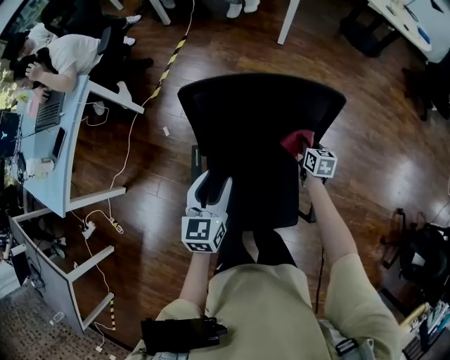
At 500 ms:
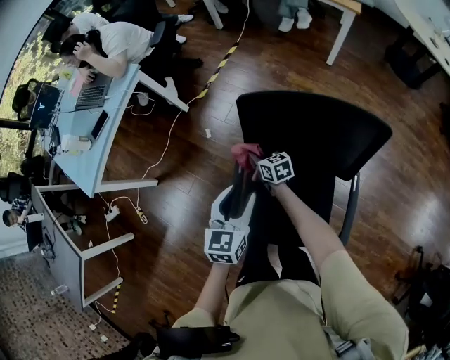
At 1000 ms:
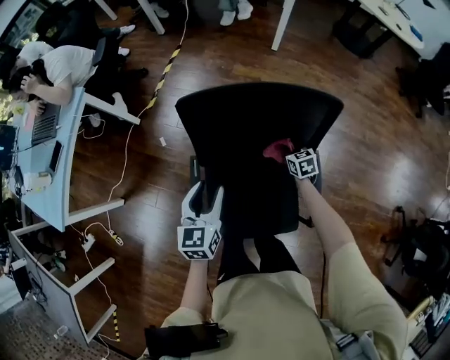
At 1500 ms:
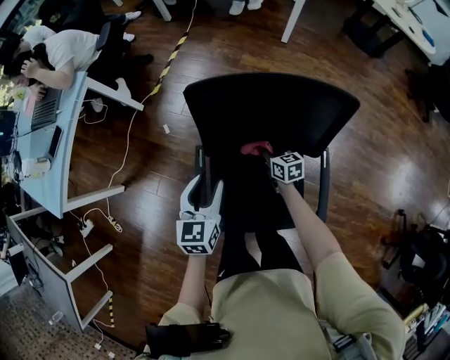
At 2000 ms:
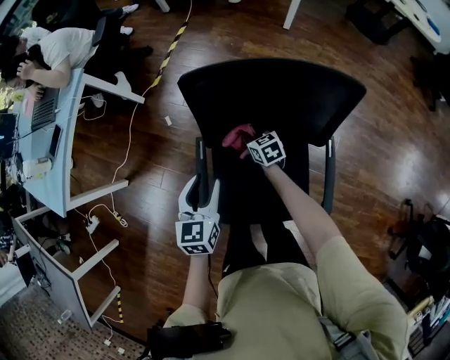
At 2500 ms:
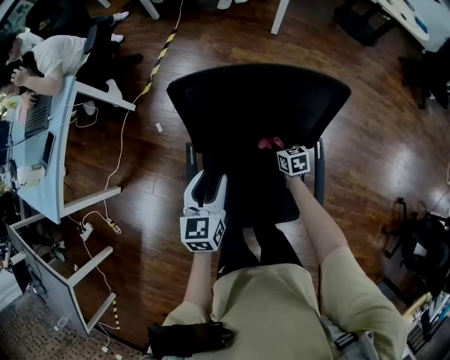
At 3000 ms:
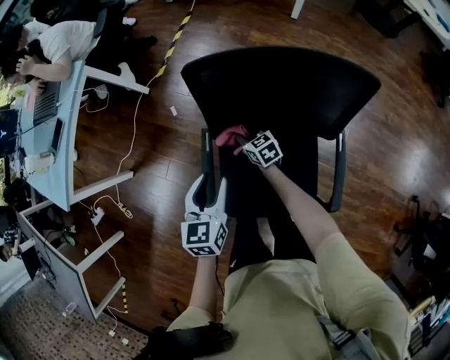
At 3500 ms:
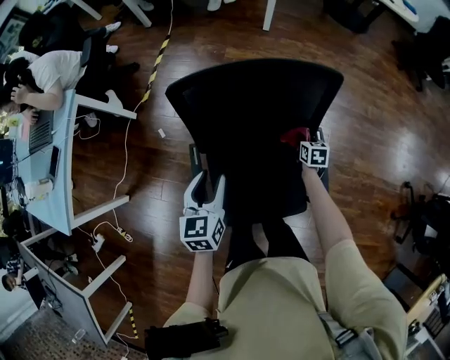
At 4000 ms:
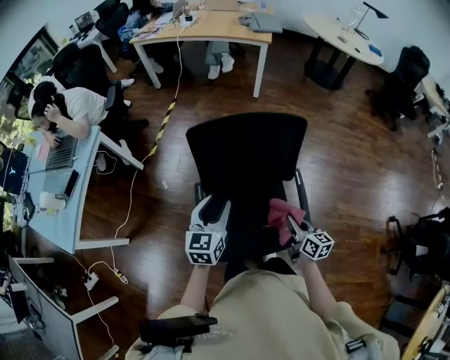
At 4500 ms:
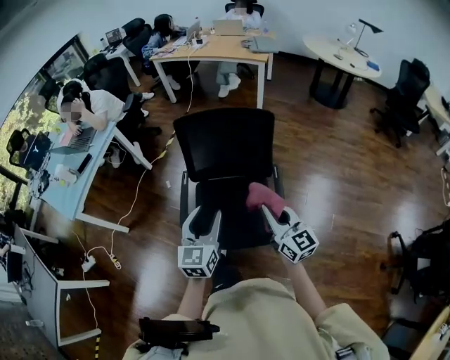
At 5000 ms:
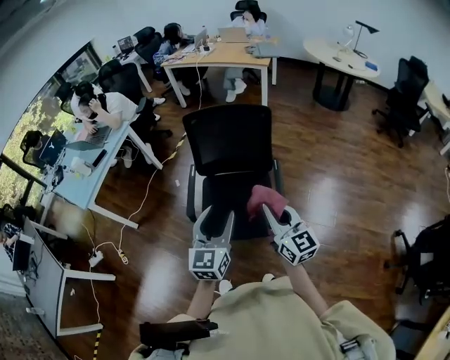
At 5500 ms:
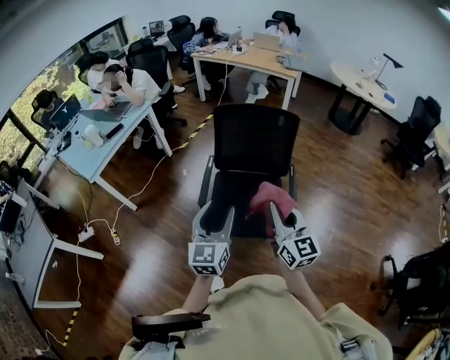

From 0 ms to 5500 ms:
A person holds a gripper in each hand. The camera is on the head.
From 0 ms to 2000 ms: The right gripper changes place by approximately 25 cm, and swivels some 30 degrees. Meanwhile the left gripper moves approximately 10 cm.
From 2000 ms to 3500 ms: The right gripper changes place by roughly 25 cm, and changes its angle by about 40 degrees.
From 3500 ms to 5500 ms: The left gripper heads backward and upward, covering roughly 40 cm, and swivels approximately 30 degrees, while the right gripper is displaced upward and backward by roughly 60 cm, and angles its fingers upward, by some 60 degrees.

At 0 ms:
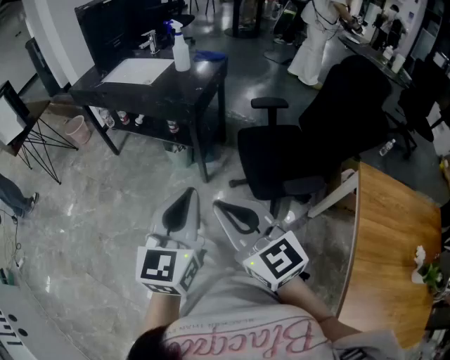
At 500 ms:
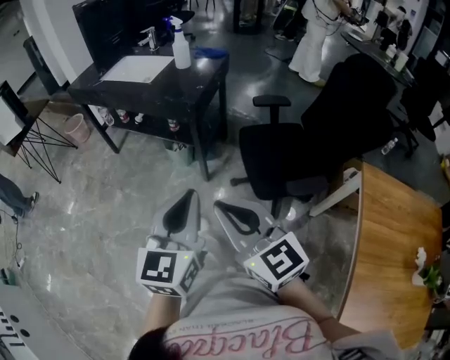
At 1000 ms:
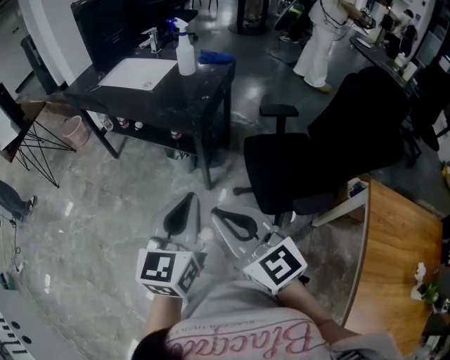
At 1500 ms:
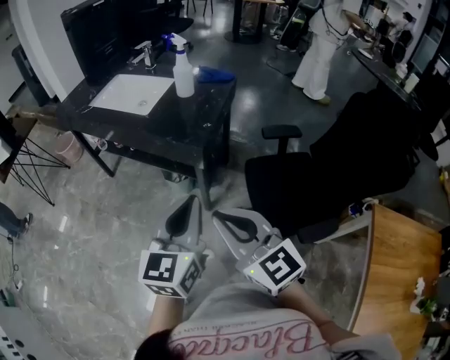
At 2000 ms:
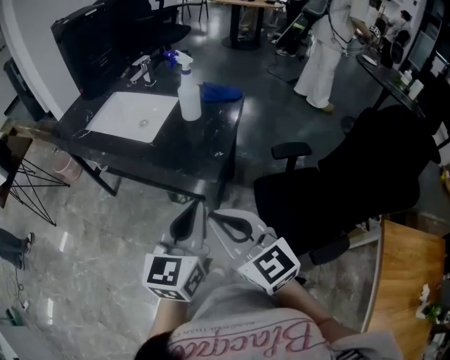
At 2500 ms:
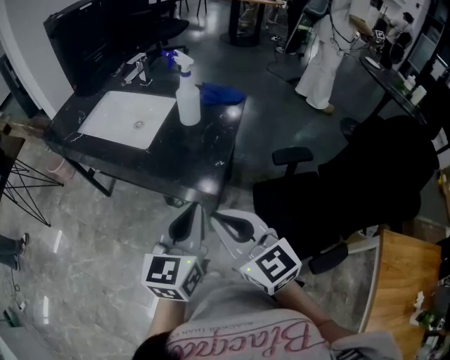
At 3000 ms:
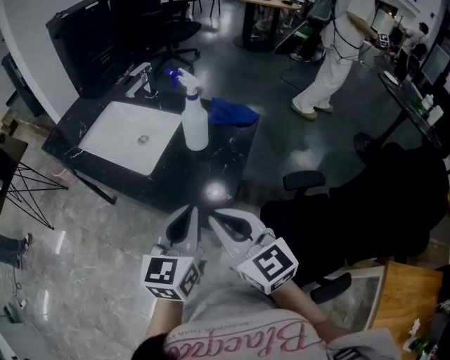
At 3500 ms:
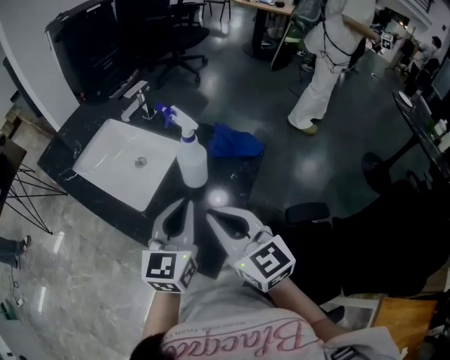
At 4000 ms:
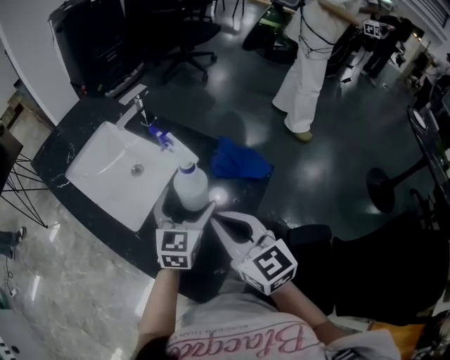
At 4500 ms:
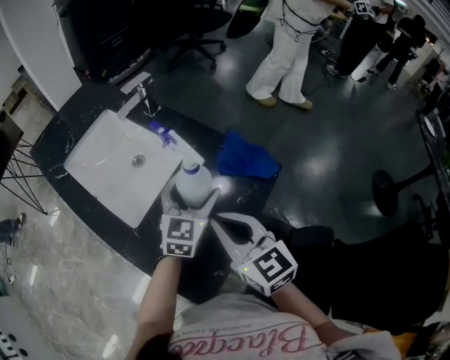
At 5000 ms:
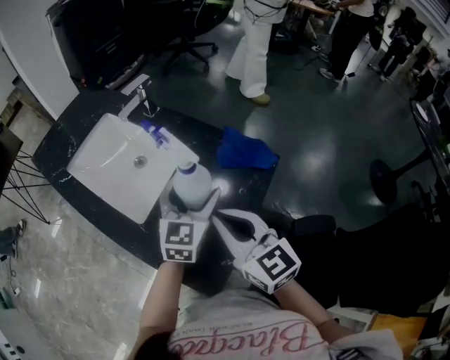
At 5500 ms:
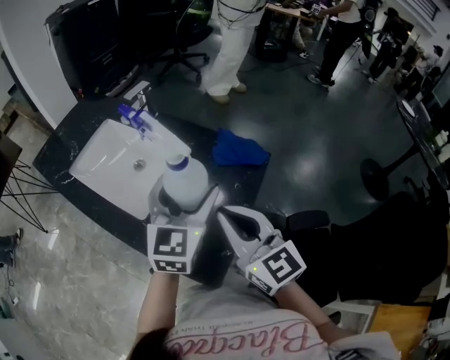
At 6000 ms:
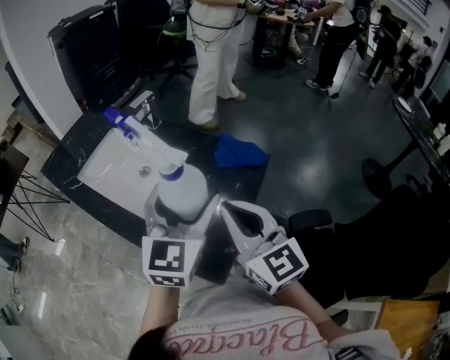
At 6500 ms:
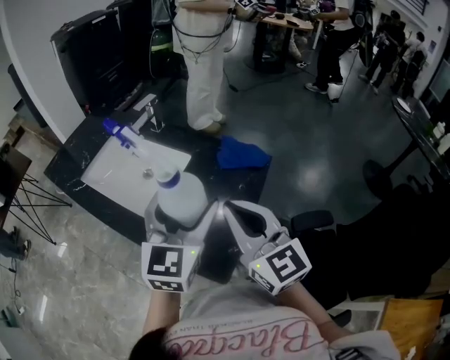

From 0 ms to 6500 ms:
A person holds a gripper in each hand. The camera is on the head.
From 0 ms to 2000 ms: The grippers both shift forward by roughly 30 cm.
From 2000 ms to 4500 ms: Both grippers travel together forward, roughly 35 cm. The left gripper opens.
From 4500 ms to 6500 ms: The left gripper travels upward and backward by roughly 20 cm. Meanwhile the right gripper heads upward and backward, covering roughly 10 cm, and turns by some 20 degrees.

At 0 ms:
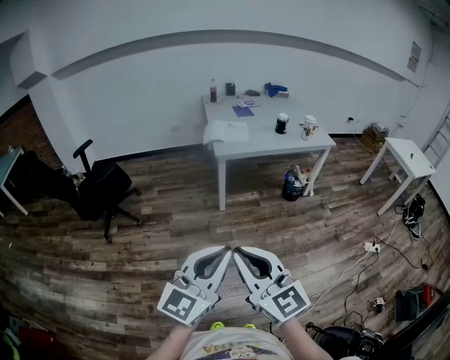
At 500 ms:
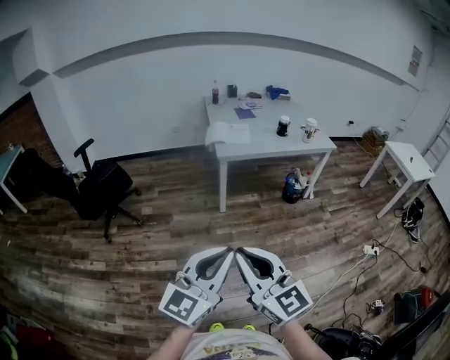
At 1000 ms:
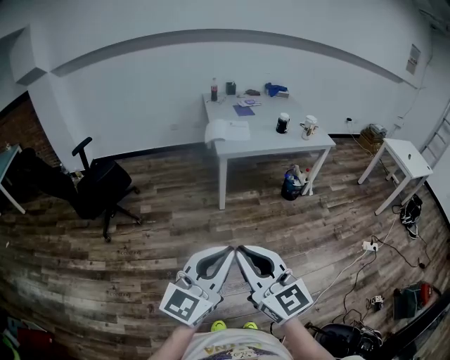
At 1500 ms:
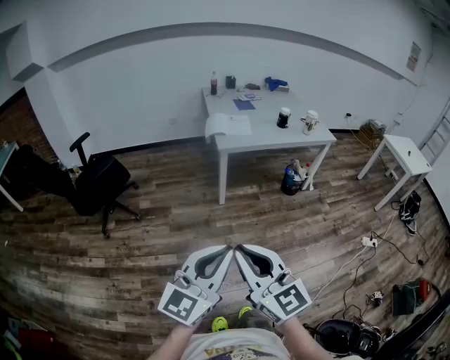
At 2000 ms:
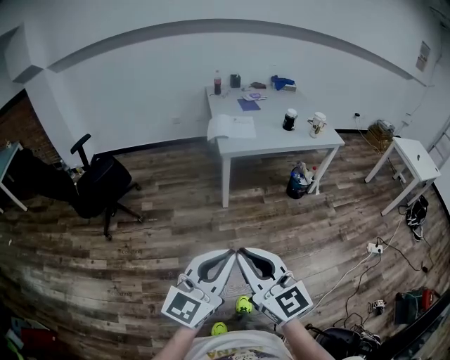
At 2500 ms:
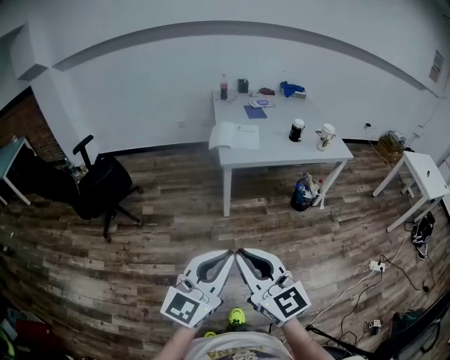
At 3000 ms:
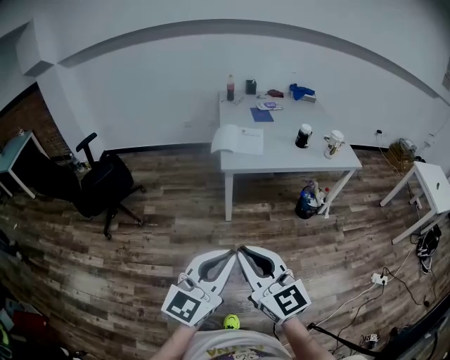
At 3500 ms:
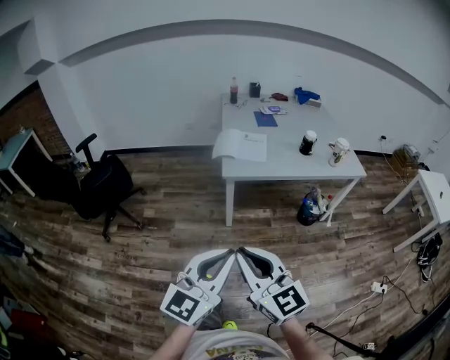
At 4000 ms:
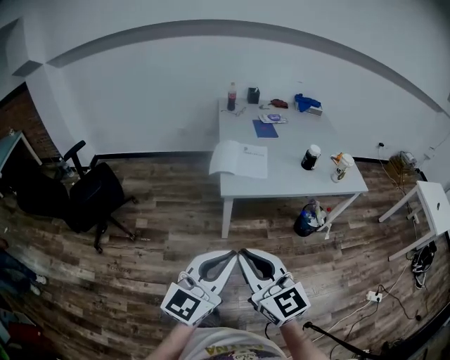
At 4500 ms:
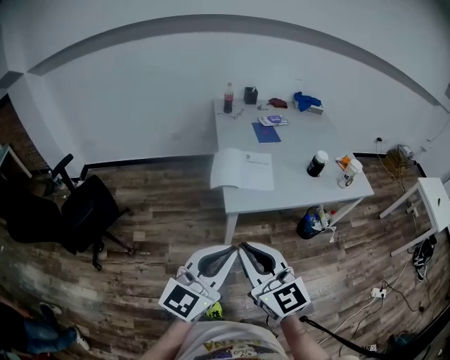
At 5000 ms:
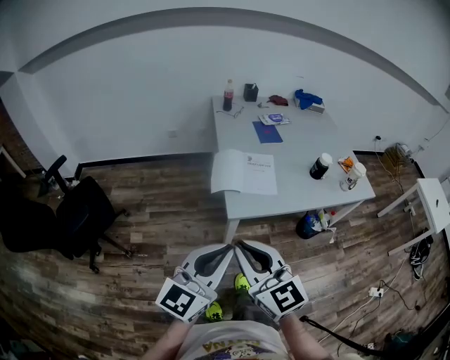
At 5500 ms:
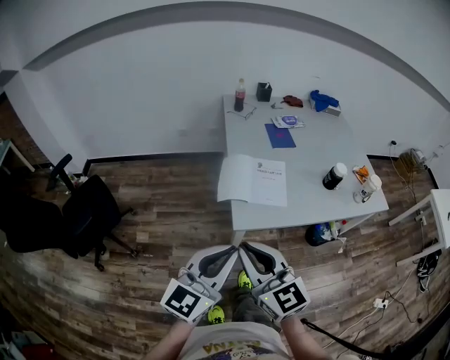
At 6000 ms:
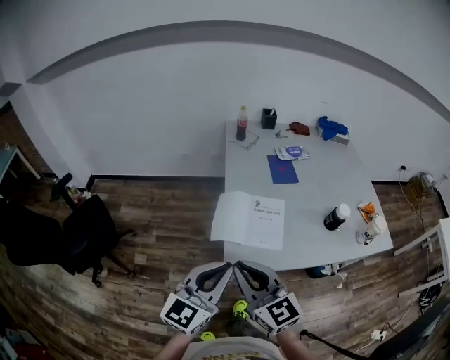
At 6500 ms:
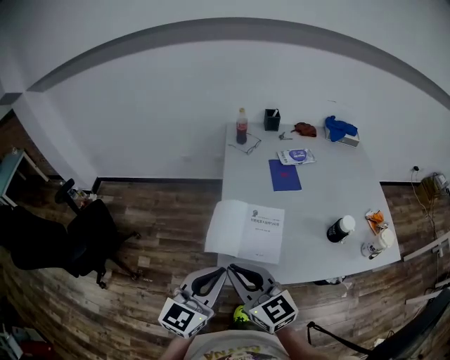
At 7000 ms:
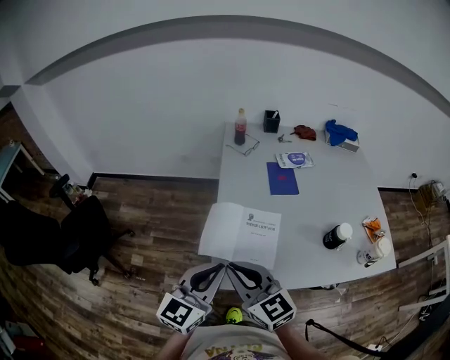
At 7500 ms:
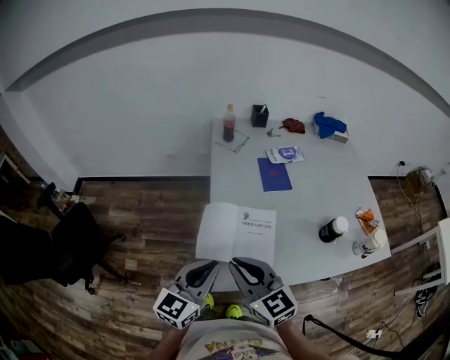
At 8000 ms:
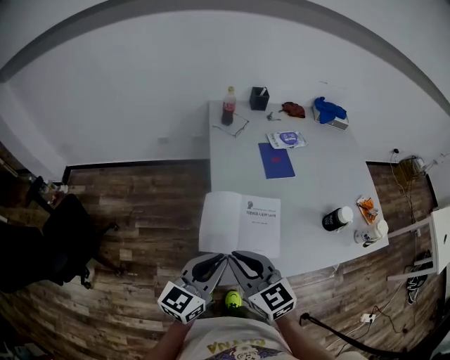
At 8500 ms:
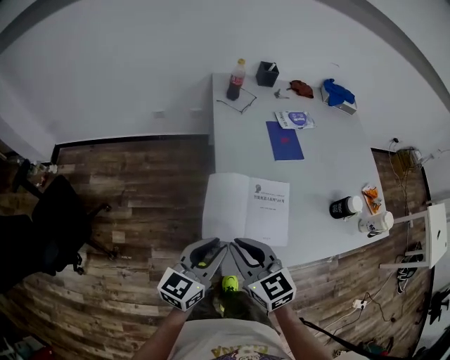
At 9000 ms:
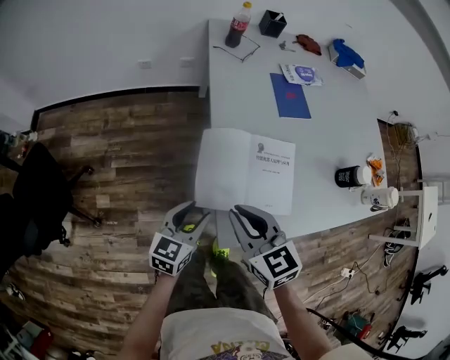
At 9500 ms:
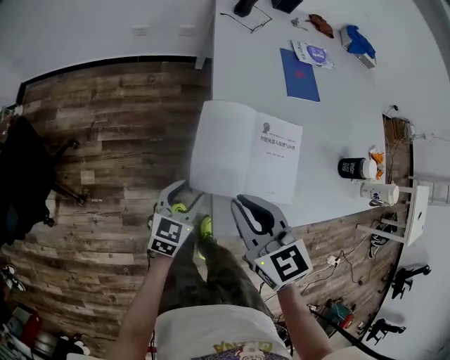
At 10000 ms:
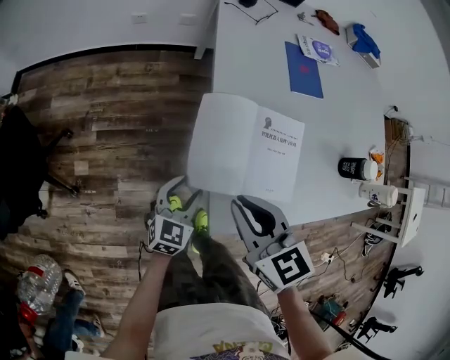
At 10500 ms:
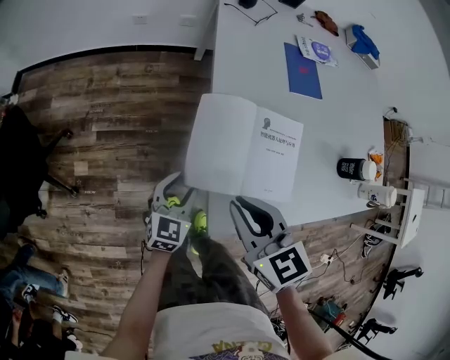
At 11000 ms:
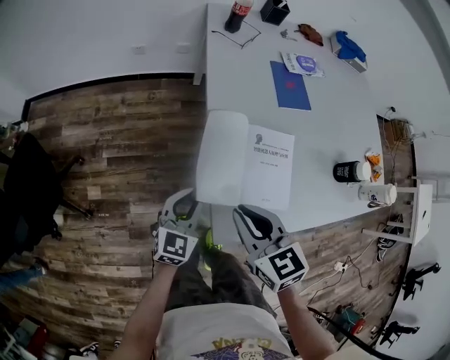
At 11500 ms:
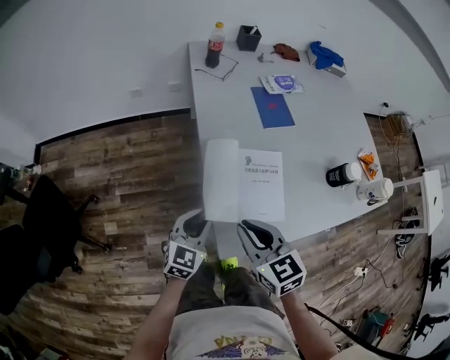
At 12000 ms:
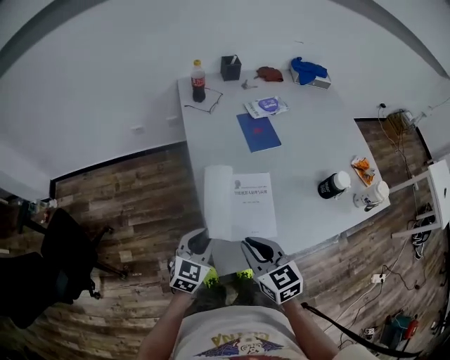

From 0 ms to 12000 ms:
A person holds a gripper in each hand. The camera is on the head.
From 0 ms to 2000 ms: The two grippers go about 5 cm forward.
From 2000 ms to 4000 ms: Both grippers move forward, approximately 35 cm.
From 4000 ms to 6000 ms: The pair of grippers is taken forward, approximately 40 cm.
From 6000 ms to 8000 ms: Both grippers move forward and downward, about 20 cm.
From 8000 ms to 10000 ms: The left gripper goes about 30 cm downward, turns by some 30 degrees, and opens up. Meanwhile the right gripper shifts about 15 cm downward.
From 10000 ms to 12000 ms: The right gripper moves to the right and upward, approximately 10 cm. The left gripper moves upward and to the right, some 15 cm, and closes up.

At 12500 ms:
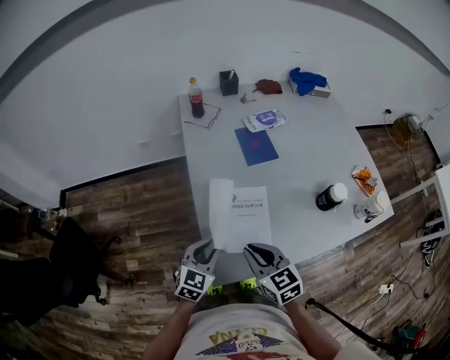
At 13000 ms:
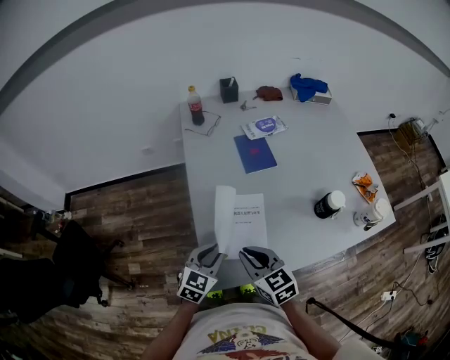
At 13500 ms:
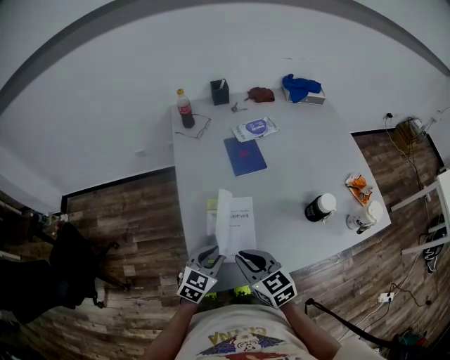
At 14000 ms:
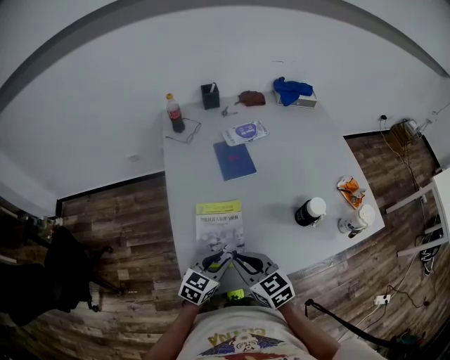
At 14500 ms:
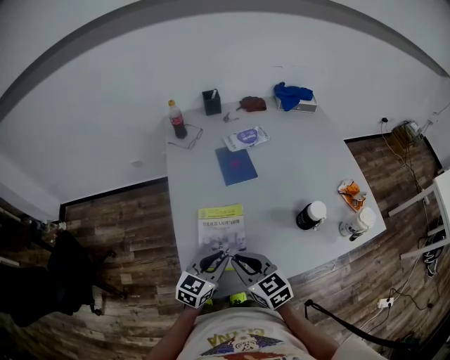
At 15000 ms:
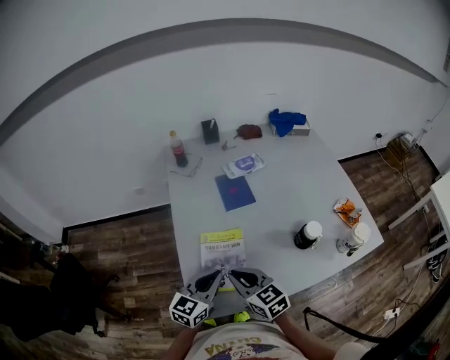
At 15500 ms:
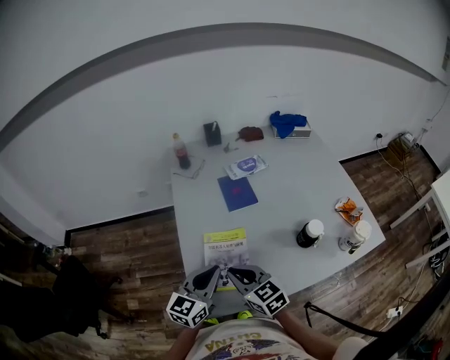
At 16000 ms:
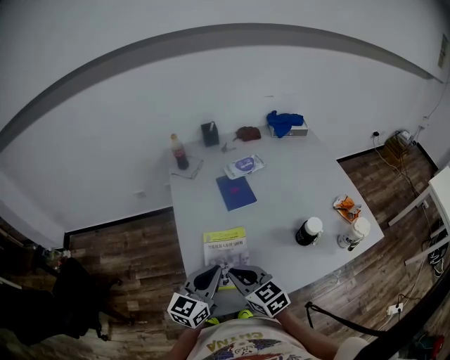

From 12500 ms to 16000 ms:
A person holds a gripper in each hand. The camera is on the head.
From 12500 ms to 14500 ms: The left gripper travels to the right by approximately 15 cm, while the right gripper is displaced to the right by about 5 cm.
From 14500 ms to 16000 ms: The left gripper moves upward, about 10 cm.
